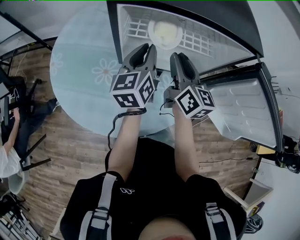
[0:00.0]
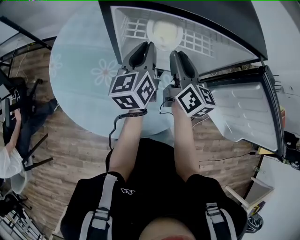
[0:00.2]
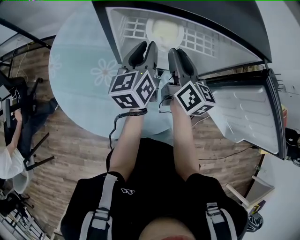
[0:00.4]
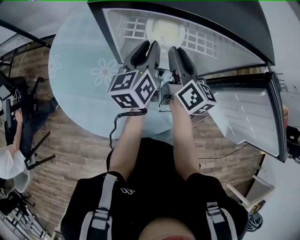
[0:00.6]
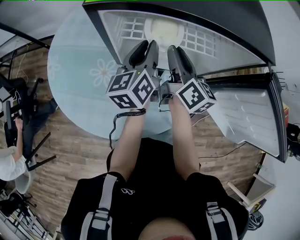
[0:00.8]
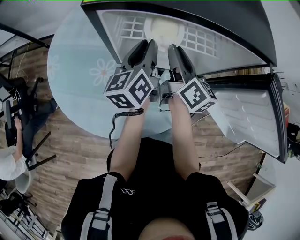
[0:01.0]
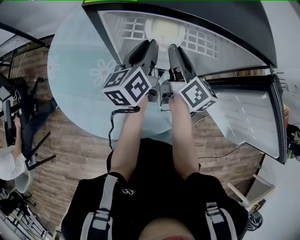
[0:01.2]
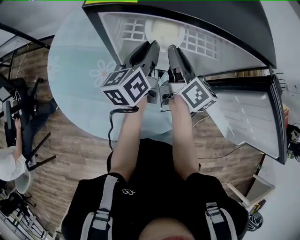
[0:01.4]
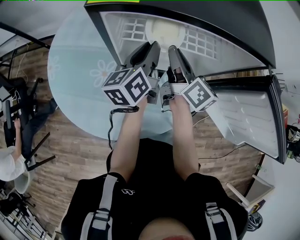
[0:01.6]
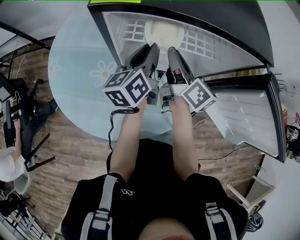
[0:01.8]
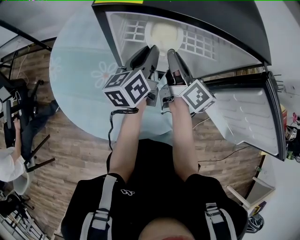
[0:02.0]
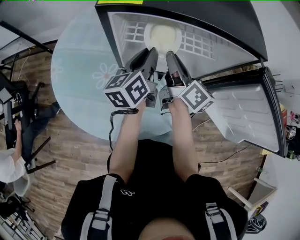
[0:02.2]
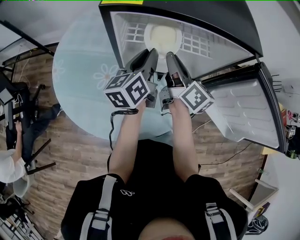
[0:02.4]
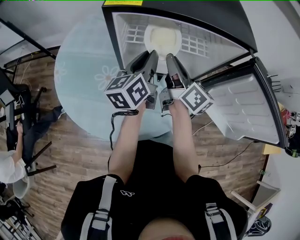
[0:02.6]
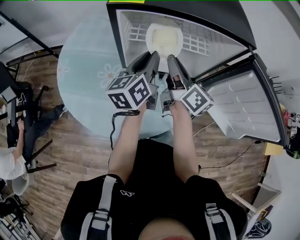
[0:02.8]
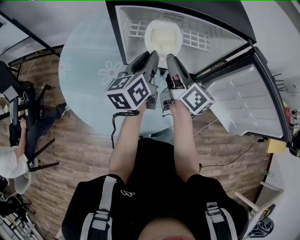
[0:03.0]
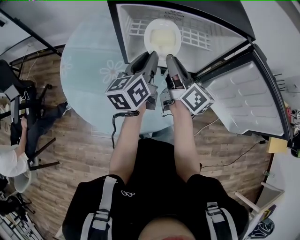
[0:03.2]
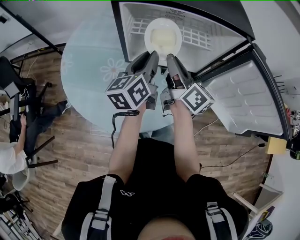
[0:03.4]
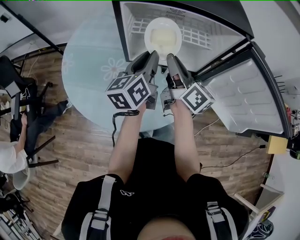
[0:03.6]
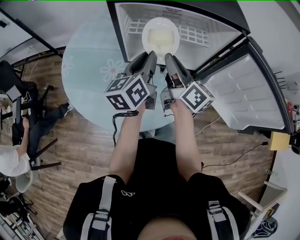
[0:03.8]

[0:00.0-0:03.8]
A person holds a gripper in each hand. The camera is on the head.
0:00.0 to 0:01.2: The right gripper travels forward by approximately 5 cm, and turns by approximately 20 degrees.
0:01.2 to 0:02.6: The two grippers go approximately 5 cm backward.
0:02.6 to 0:03.8: The left gripper goes roughly 5 cm backward.

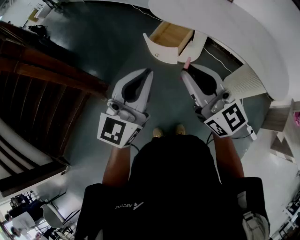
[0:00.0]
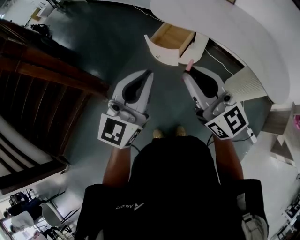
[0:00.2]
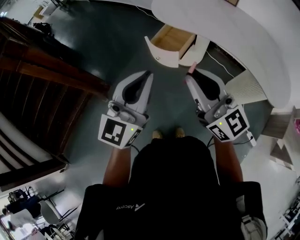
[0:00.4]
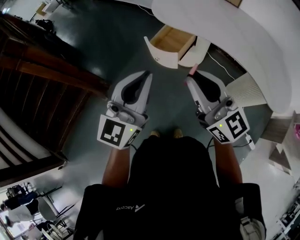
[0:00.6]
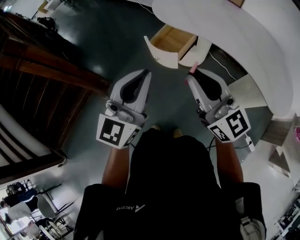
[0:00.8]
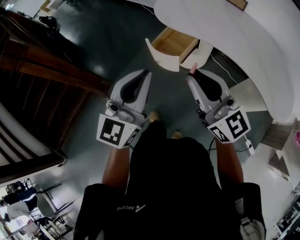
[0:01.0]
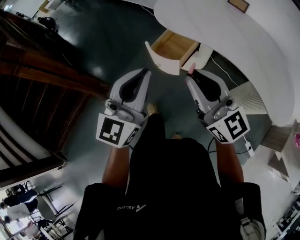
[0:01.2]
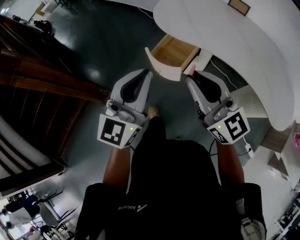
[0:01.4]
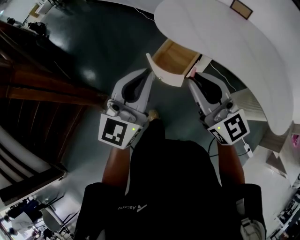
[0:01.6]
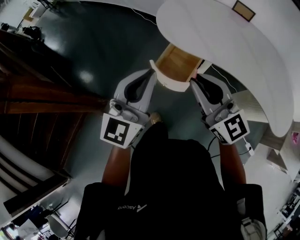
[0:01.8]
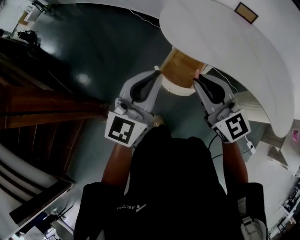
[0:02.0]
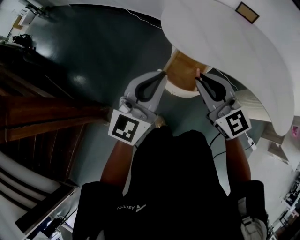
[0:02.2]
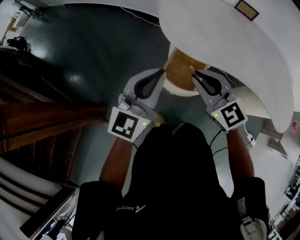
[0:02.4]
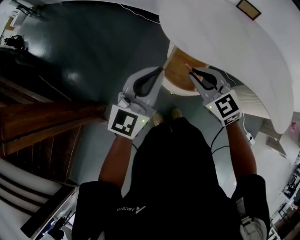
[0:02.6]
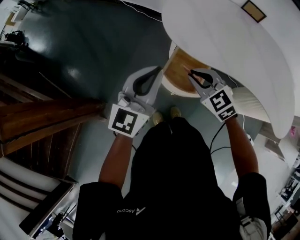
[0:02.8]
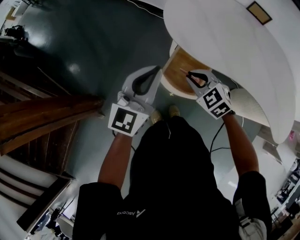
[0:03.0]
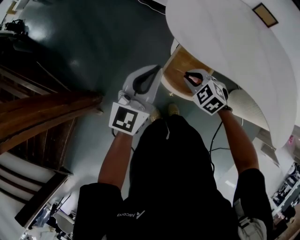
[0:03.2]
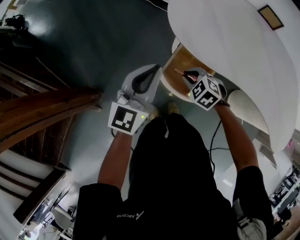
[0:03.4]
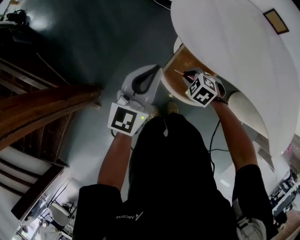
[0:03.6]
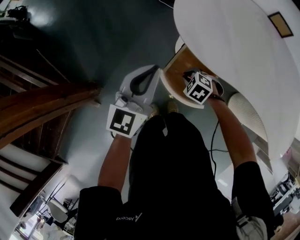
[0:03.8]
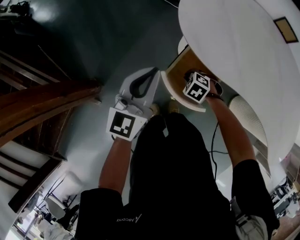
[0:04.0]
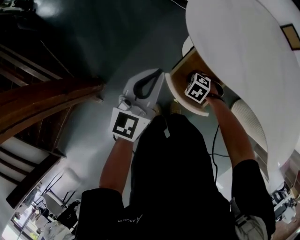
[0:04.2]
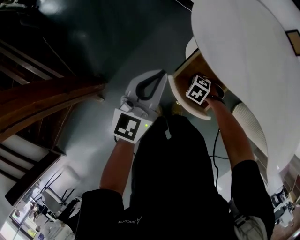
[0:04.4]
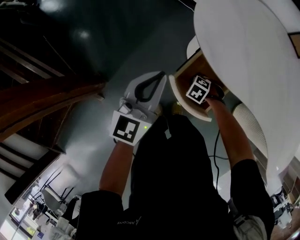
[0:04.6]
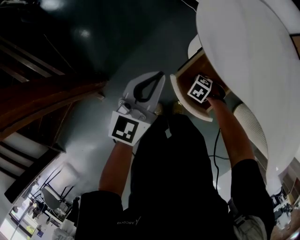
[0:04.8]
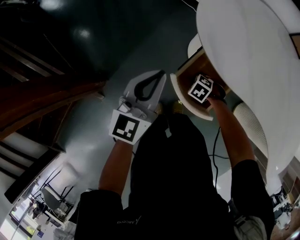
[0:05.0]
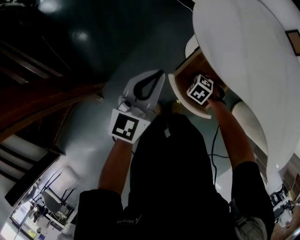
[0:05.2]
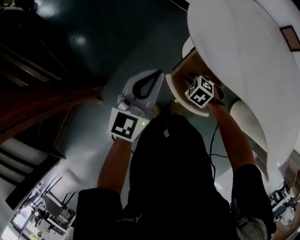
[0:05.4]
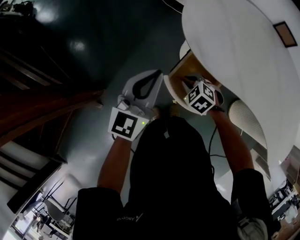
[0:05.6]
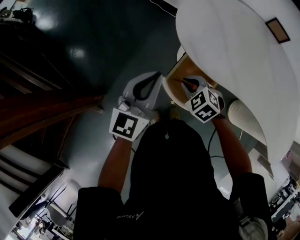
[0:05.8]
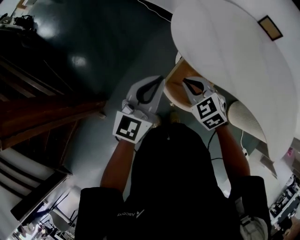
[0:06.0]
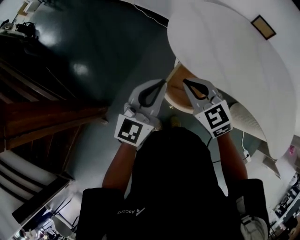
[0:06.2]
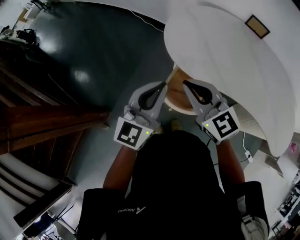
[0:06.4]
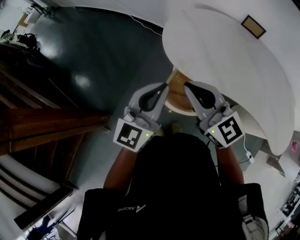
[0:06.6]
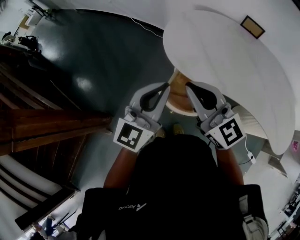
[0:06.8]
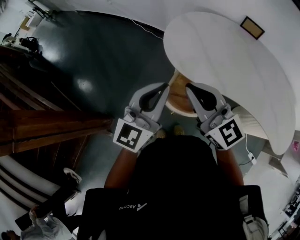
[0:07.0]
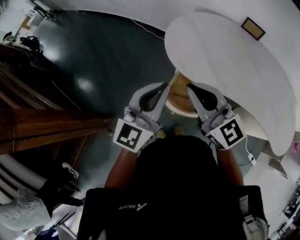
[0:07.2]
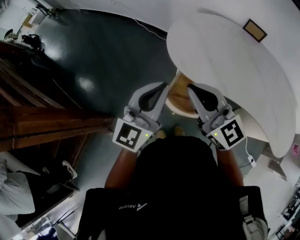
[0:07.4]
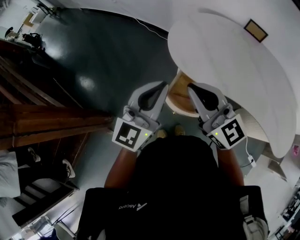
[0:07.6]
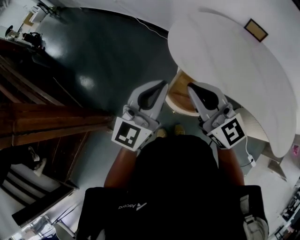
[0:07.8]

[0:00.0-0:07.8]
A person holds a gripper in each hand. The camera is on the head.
0:00.0 to 0:01.6: Both grippers move forward, roughly 20 cm.
0:01.6 to 0:03.2: The left gripper moves forward and downward, some 30 cm; the right gripper goes approximately 40 cm downward and forward, and angles its fingers downward, by about 60 degrees.
0:03.2 to 0:04.6: The right gripper is displaced downward by approximately 25 cm, and changes its angle by approximately 30 degrees. The left gripper is displaced downward by approximately 5 cm.
0:04.6 to 0:06.2: The left gripper is displaced upward by approximately 10 cm. The right gripper shifts about 40 cm upward, and tips its fingers upward by approximately 50 degrees.
0:06.2 to 0:07.8: The left gripper travels upward by approximately 10 cm. The right gripper travels upward by some 15 cm, and rotates some 30 degrees.

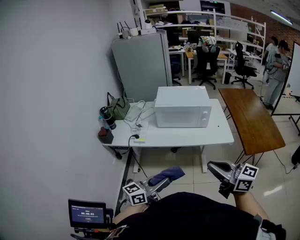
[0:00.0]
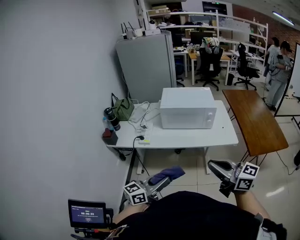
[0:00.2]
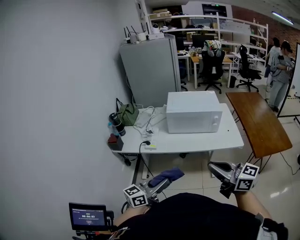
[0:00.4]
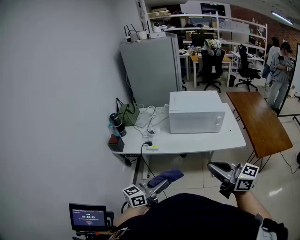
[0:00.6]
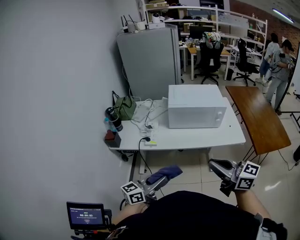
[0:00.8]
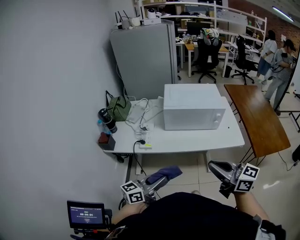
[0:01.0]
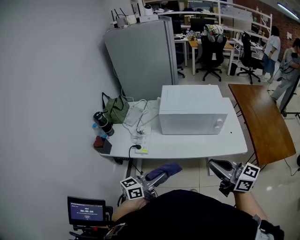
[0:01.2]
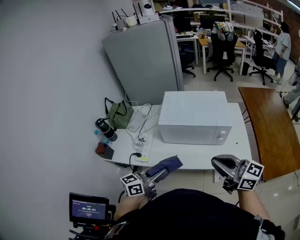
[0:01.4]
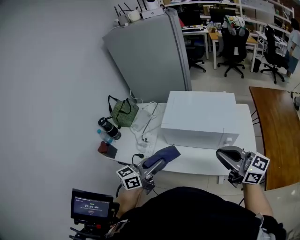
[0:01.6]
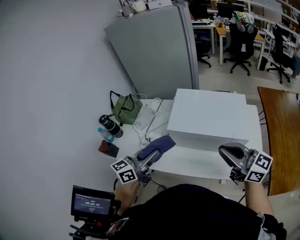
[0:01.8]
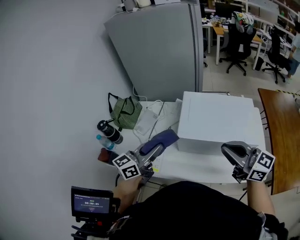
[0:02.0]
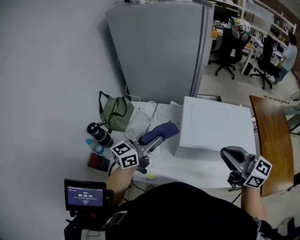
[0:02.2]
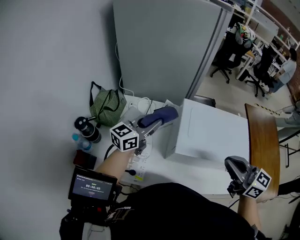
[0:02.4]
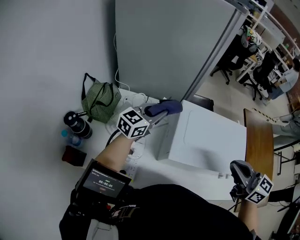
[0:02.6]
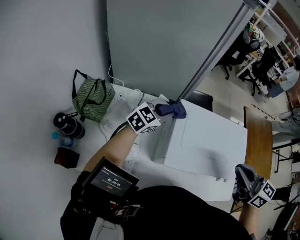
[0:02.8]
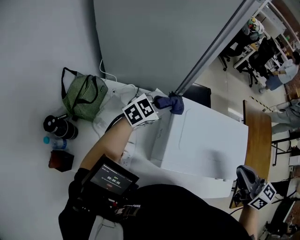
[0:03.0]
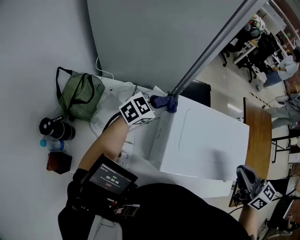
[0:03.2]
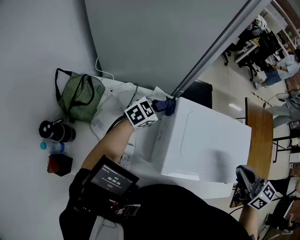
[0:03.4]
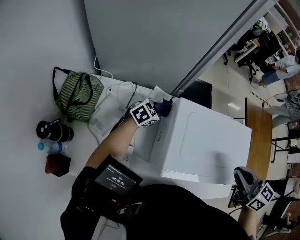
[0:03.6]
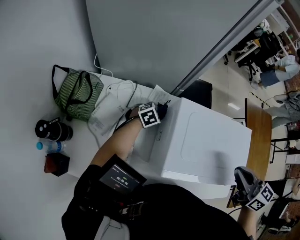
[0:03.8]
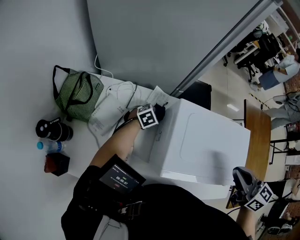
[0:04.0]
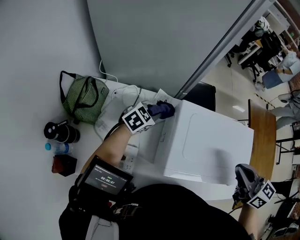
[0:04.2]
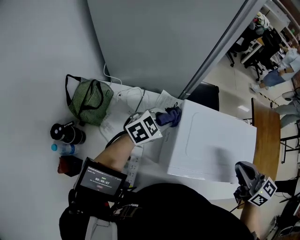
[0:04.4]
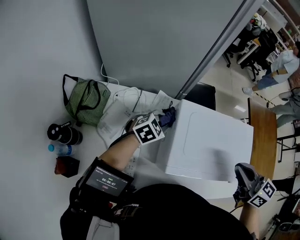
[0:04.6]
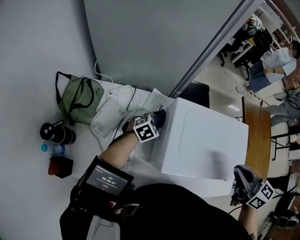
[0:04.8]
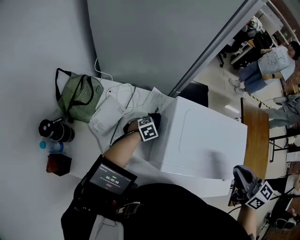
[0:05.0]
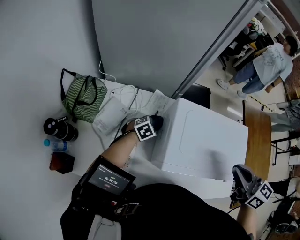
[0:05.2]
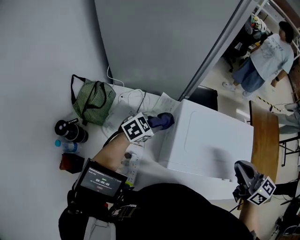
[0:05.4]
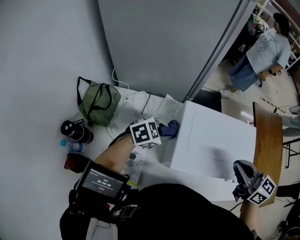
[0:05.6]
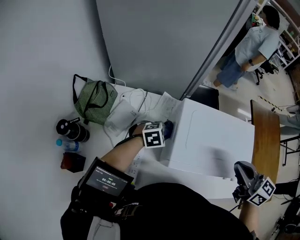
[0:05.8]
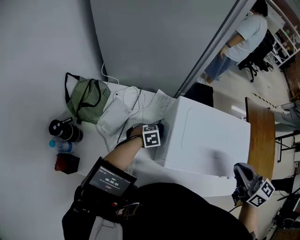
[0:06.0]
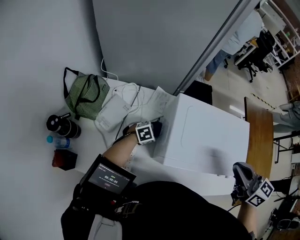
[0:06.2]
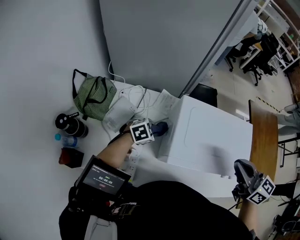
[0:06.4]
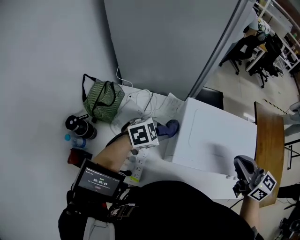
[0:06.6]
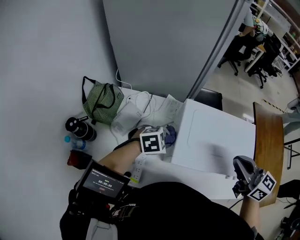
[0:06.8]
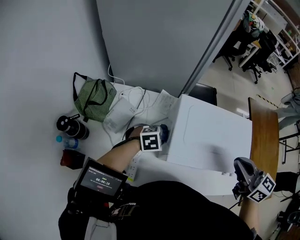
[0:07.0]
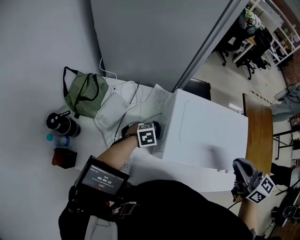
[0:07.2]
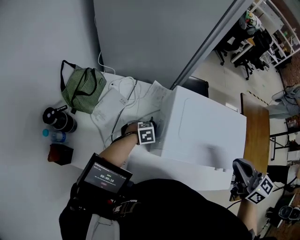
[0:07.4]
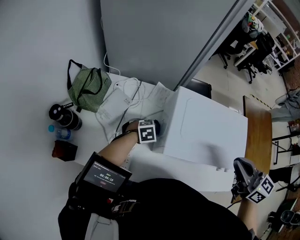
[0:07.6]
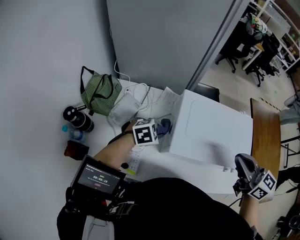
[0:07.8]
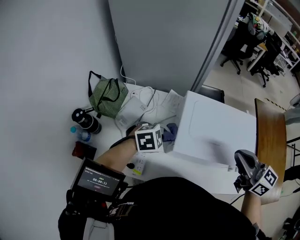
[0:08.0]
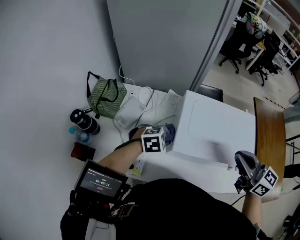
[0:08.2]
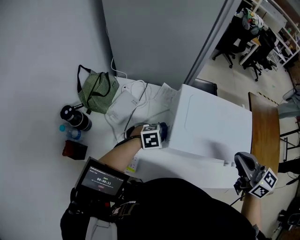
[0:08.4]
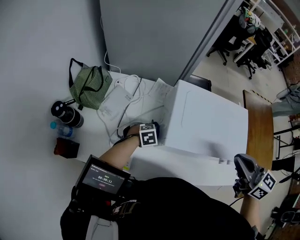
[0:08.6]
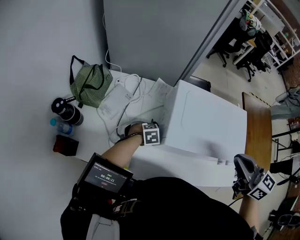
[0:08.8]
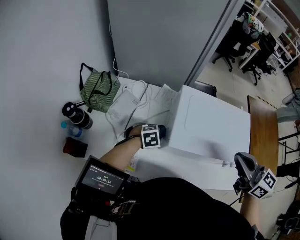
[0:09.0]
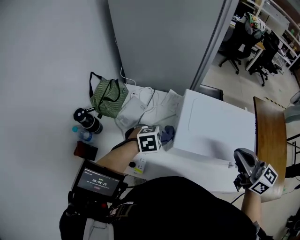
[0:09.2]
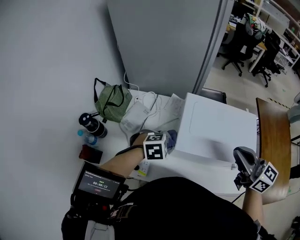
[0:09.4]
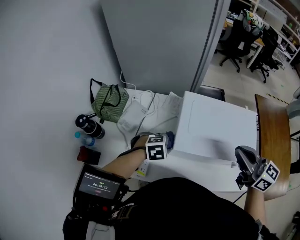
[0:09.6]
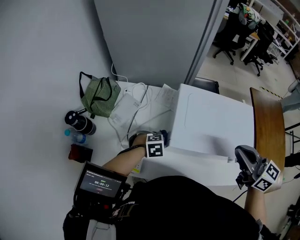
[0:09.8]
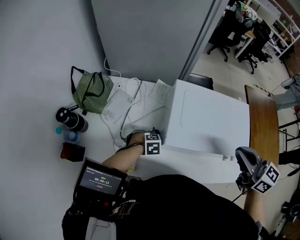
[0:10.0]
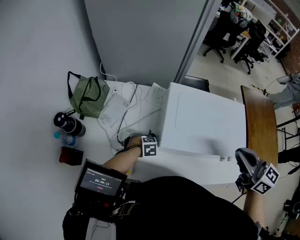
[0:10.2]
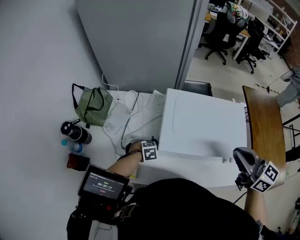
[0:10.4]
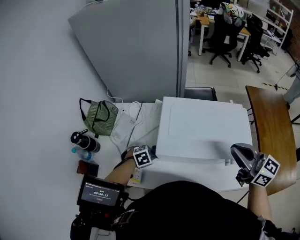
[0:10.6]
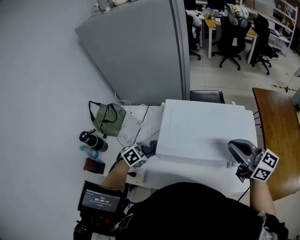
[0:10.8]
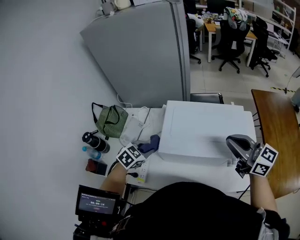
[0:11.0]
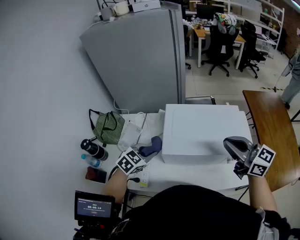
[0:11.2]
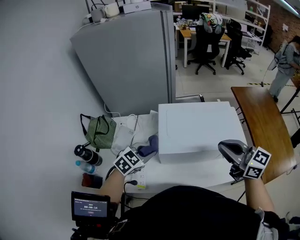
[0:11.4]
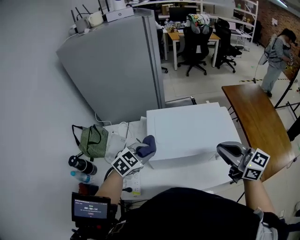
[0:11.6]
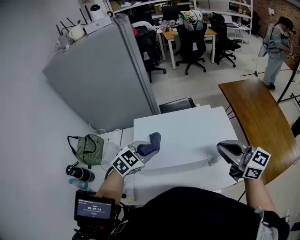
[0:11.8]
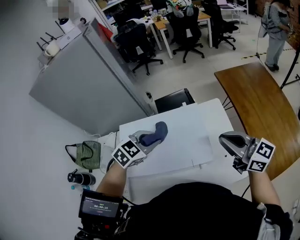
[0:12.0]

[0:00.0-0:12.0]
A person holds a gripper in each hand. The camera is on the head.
0:00.0 to 0:01.6: Both grippers move forward, about 35 cm.
0:01.6 to 0:03.0: The right gripper heads forward, covering about 20 cm, and rotates approximately 30 degrees. Meanwhile the left gripper goes approximately 40 cm forward, and changes its angle by roughly 40 degrees.
0:03.0 to 0:04.4: The left gripper goes downward and returns, approximately 25 cm each way.
0:04.4 to 0:06.0: The left gripper goes up and down, some 20 cm each way, reversing 2 times, and turns by about 30 degrees.
0:06.0 to 0:07.6: The left gripper swings up and down, roughly 20 cm each way, with 2 reversals.
0:07.6 to 0:09.0: The left gripper goes up and down, approximately 20 cm each way, reversing 2 times.
0:09.0 to 0:10.4: The left gripper is displaced downward by roughly 10 cm.
0:10.4 to 0:12.0: The right gripper changes place by approximately 20 cm. Meanwhile the left gripper goes roughly 30 cm upward, and points its fingers roughly 30 degrees further upward.
